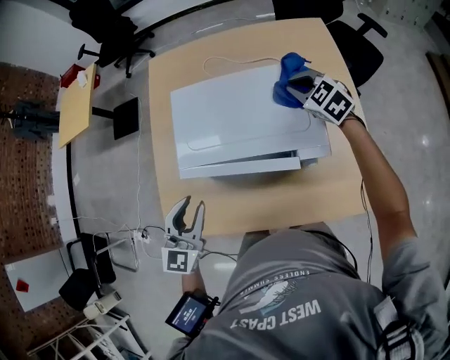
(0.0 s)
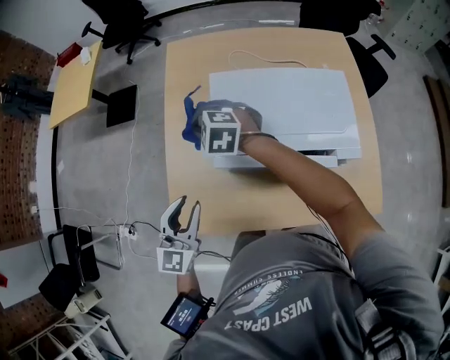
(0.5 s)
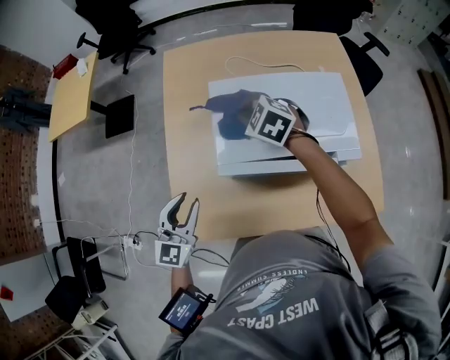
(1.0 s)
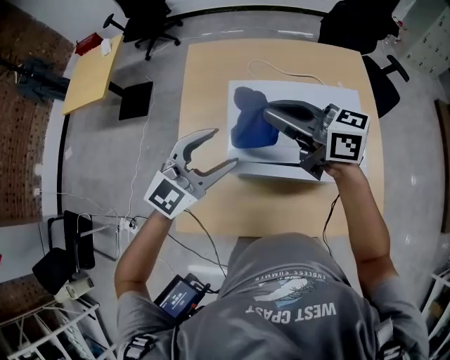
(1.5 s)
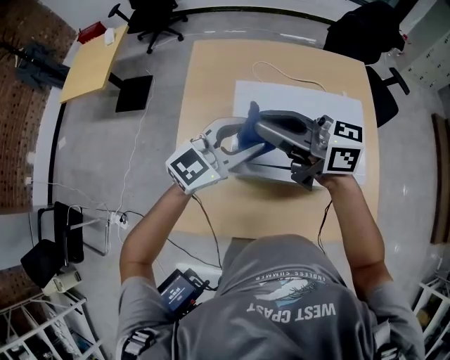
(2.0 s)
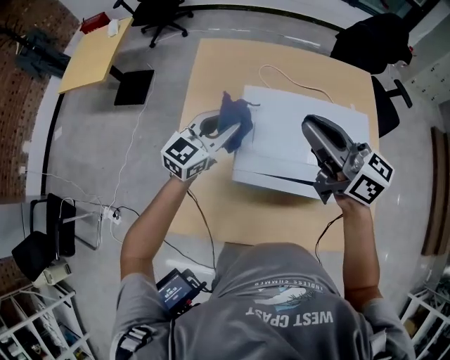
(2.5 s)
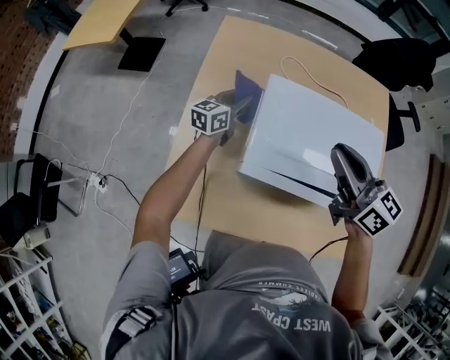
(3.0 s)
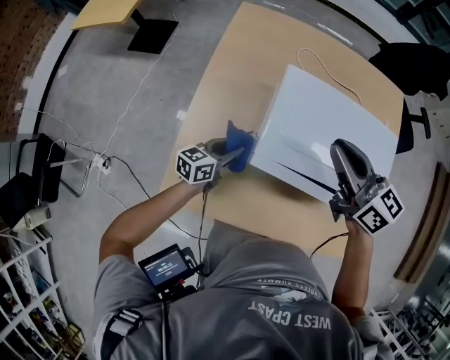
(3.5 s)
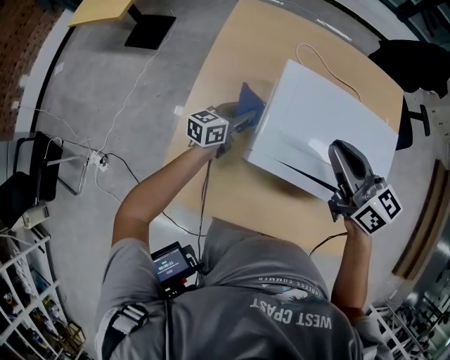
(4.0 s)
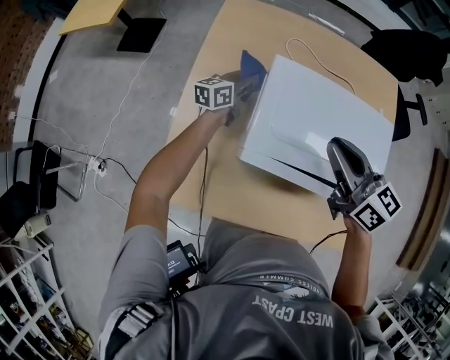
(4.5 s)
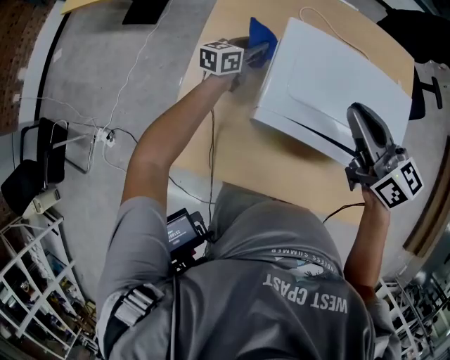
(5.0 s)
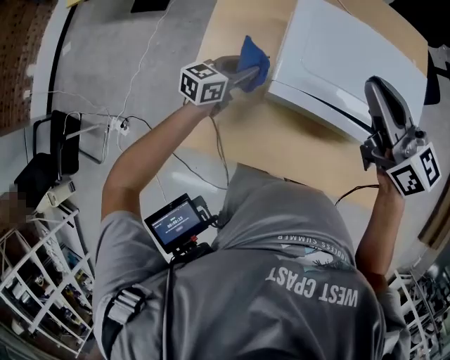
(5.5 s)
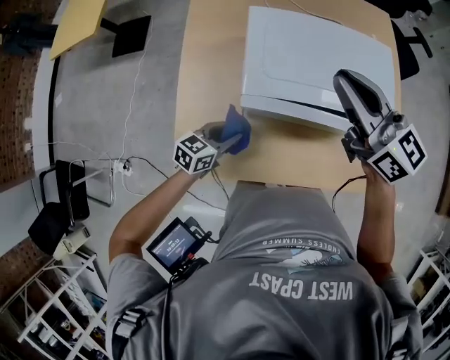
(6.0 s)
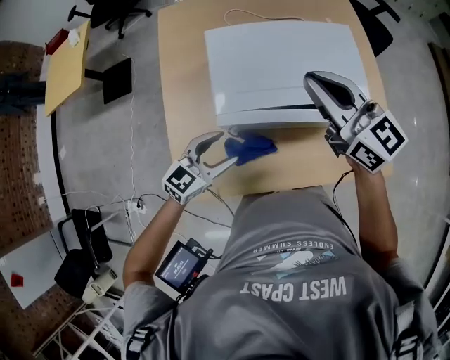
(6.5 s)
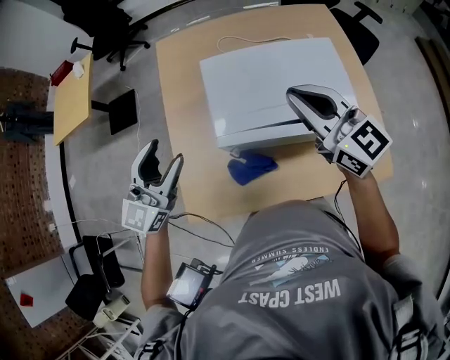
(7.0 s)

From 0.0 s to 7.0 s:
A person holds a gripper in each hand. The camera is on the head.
From 0.0 s to 2.0 s: The right gripper ends up some 40 cm from where it was, and tilts its fingers roughly 50 degrees upward. The left gripper moves about 15 cm, and rotates approximately 40 degrees.
From 2.0 s to 3.5 s: The left gripper goes approximately 25 cm downward, and rotates around the line of its fingers by about 50 degrees, counterclockwise from behind, while the right gripper travels downward by some 10 cm, and rotates roughly 30 degrees.
From 3.5 s to 5.0 s: The left gripper is displaced forward by about 20 cm.
From 5.0 s to 7.0 s: The left gripper travels upward and backward by about 35 cm, swivels some 40 degrees, and opens, while the right gripper heads backward, upward and to the right, covering approximately 10 cm, and swivels approximately 20 degrees.

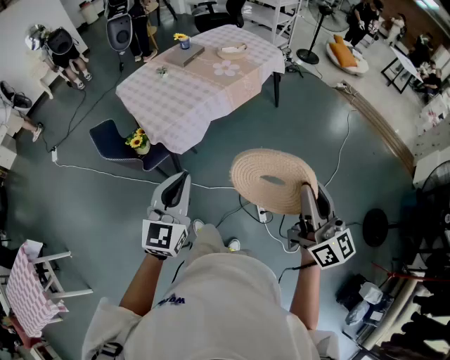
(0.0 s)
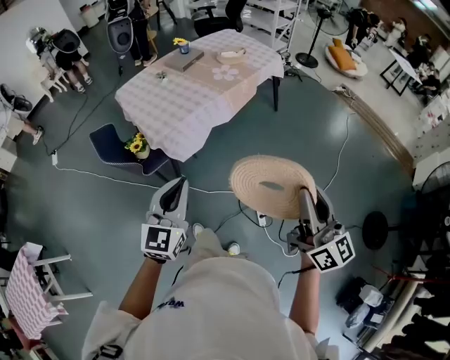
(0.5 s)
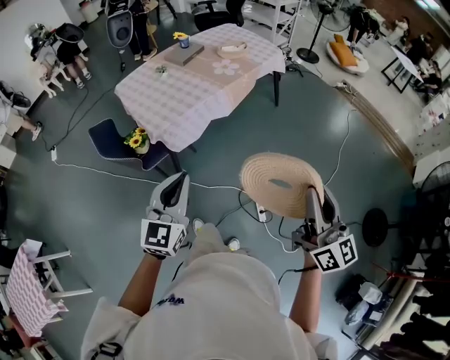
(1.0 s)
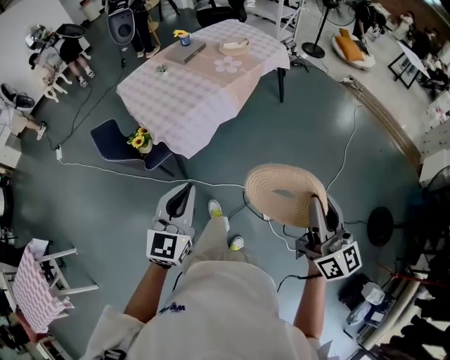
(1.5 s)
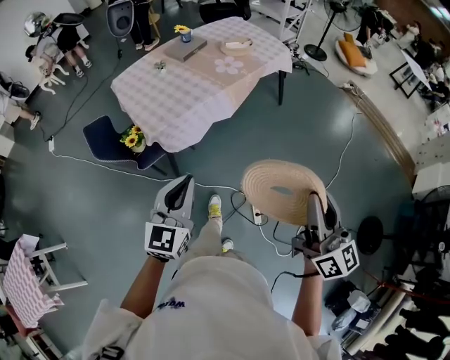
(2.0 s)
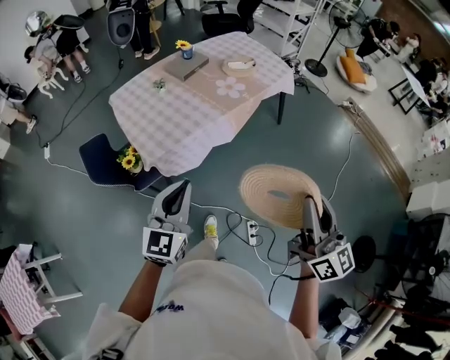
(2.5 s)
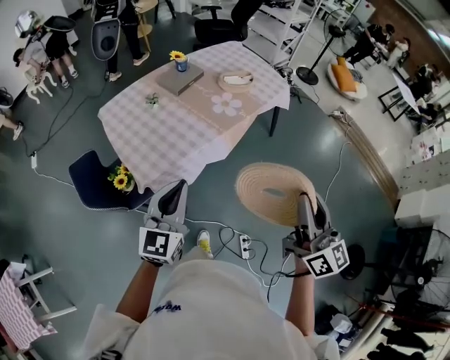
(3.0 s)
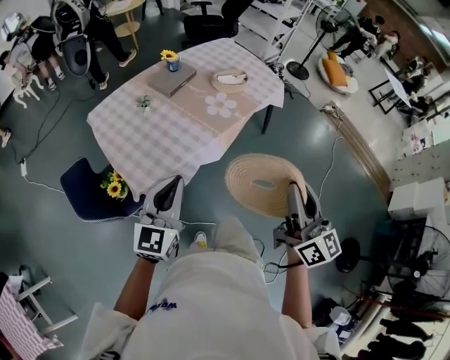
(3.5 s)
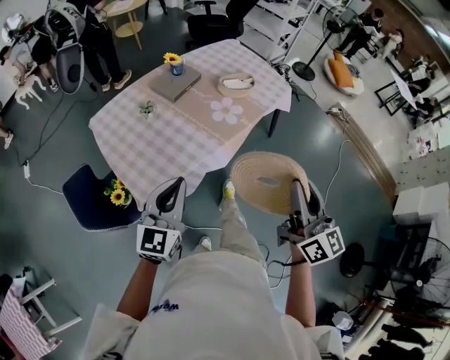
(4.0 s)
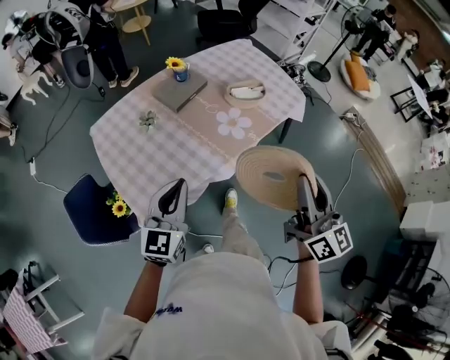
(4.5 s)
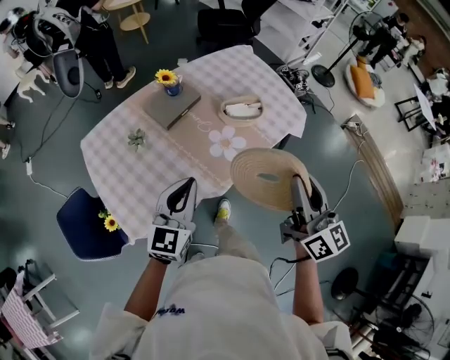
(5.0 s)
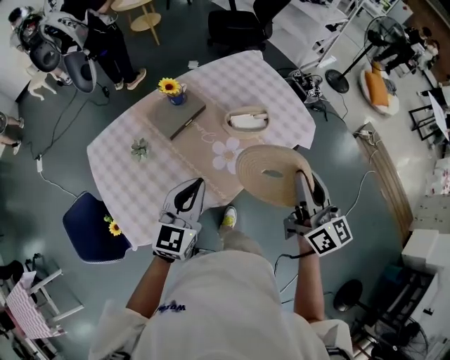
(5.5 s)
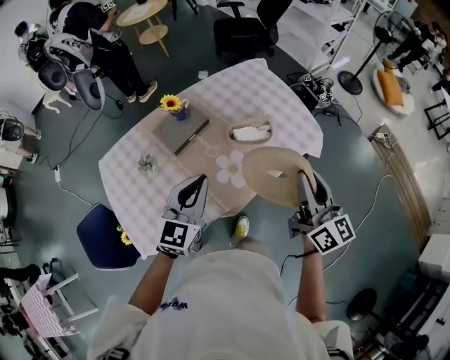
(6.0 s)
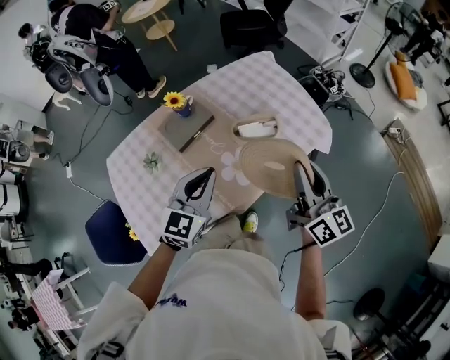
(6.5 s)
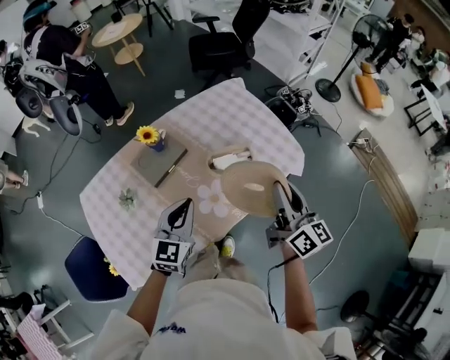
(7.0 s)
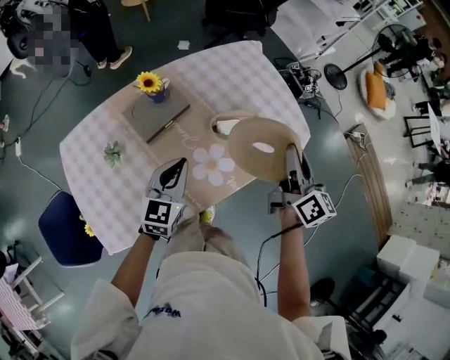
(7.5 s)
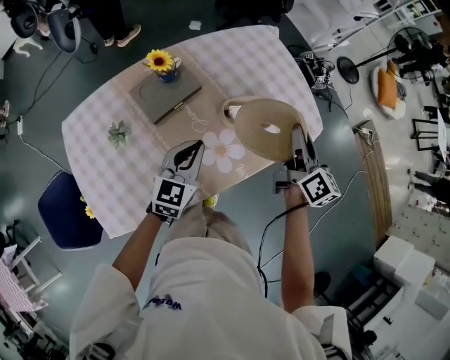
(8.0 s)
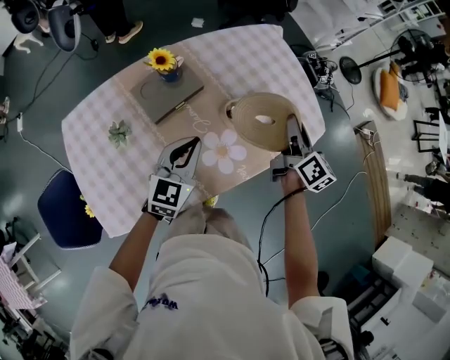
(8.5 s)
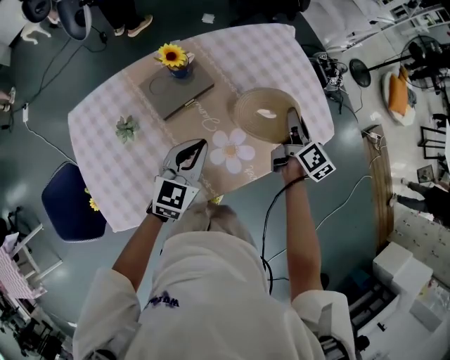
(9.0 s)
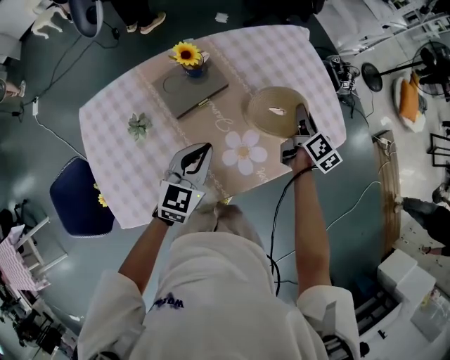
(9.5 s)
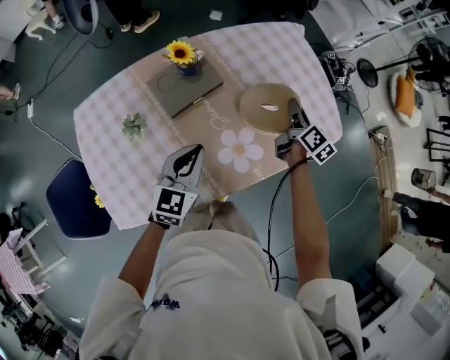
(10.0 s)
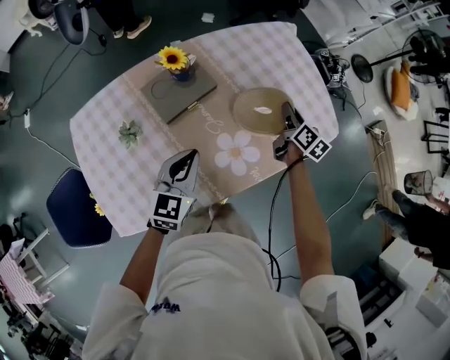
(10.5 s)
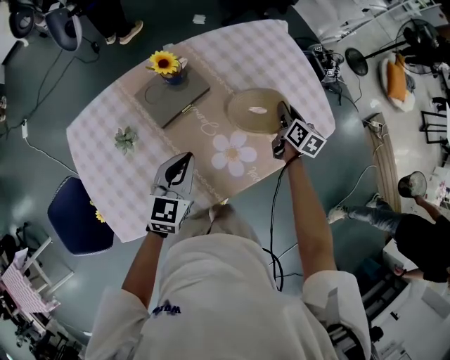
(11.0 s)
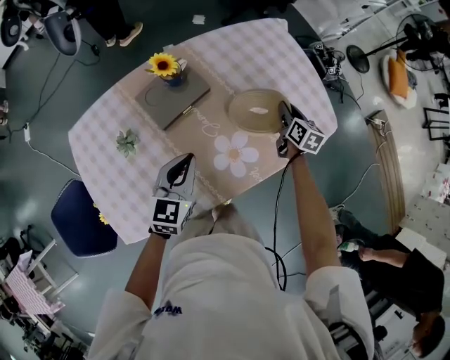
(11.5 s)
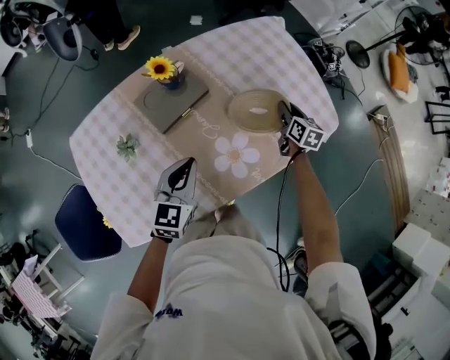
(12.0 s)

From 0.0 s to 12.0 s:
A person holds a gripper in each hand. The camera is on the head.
From 0.0 s to 2.0 s: Both grippers move forward, approximately 5 cm.
From 2.0 s to 4.0 s: The two grippers go approximately 35 cm forward.
From 4.0 s to 6.0 s: The right gripper goes some 40 cm forward. The left gripper moves forward and to the right, roughly 40 cm.
From 6.0 s to 8.0 s: The left gripper shifts approximately 15 cm downward and forward, while the right gripper shifts some 20 cm forward and downward.
From 8.0 s to 10.0 s: The left gripper moves to the left, roughly 5 cm, while the right gripper is displaced downward and forward by some 20 cm.
From 10.0 s to 12.0 s: The right gripper is displaced downward by some 10 cm, and swivels about 30 degrees.

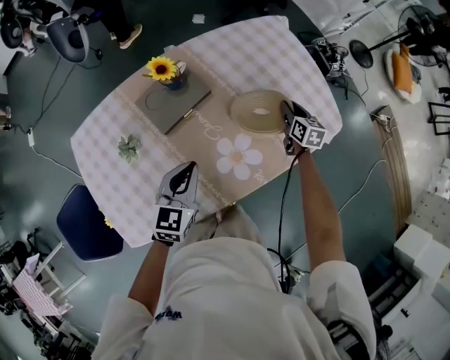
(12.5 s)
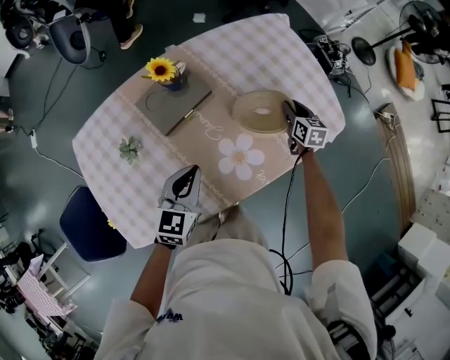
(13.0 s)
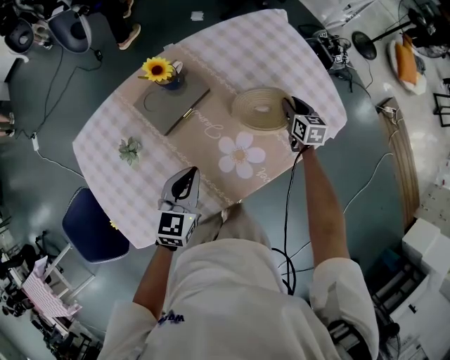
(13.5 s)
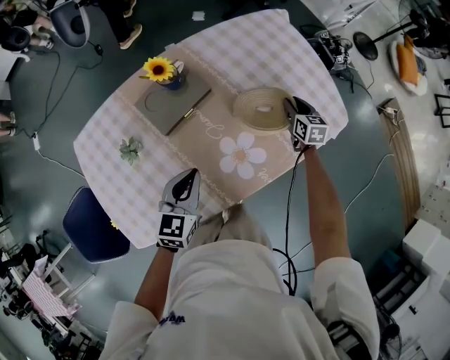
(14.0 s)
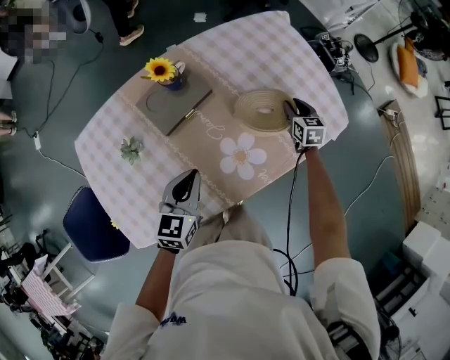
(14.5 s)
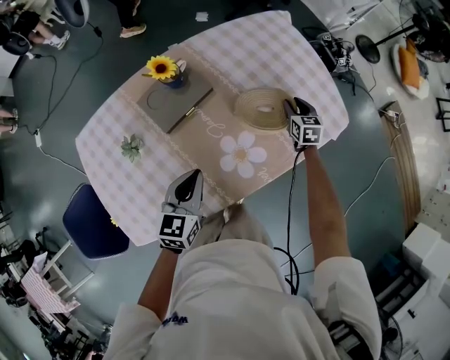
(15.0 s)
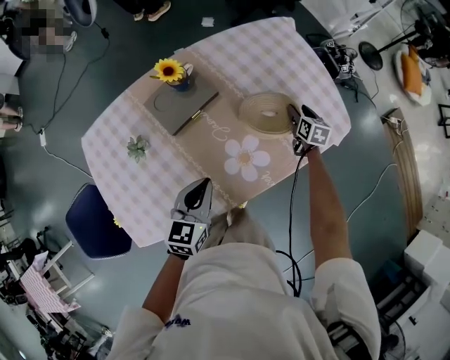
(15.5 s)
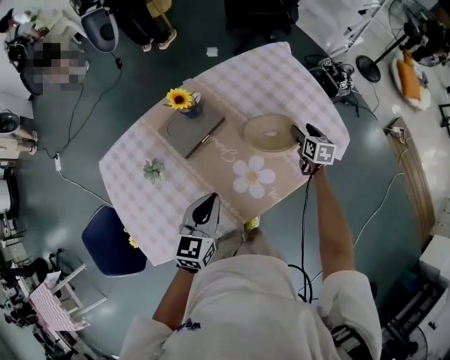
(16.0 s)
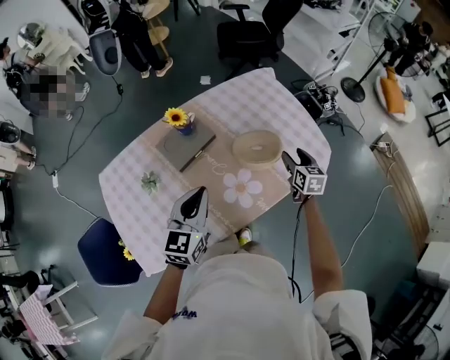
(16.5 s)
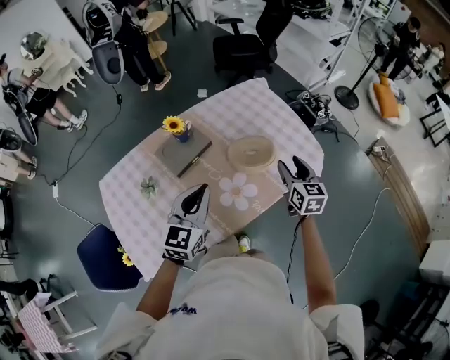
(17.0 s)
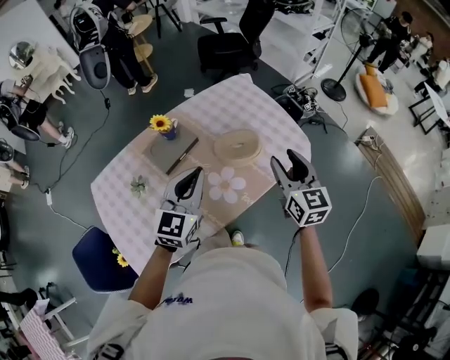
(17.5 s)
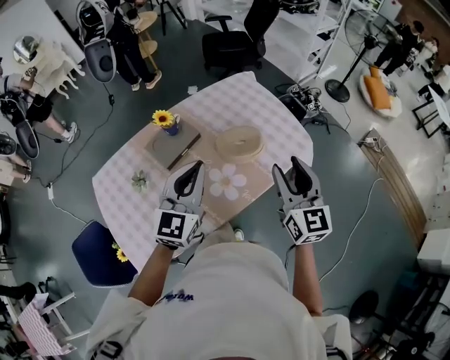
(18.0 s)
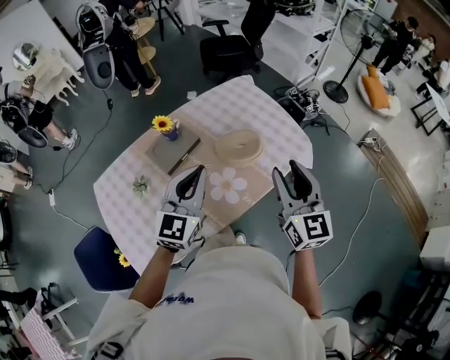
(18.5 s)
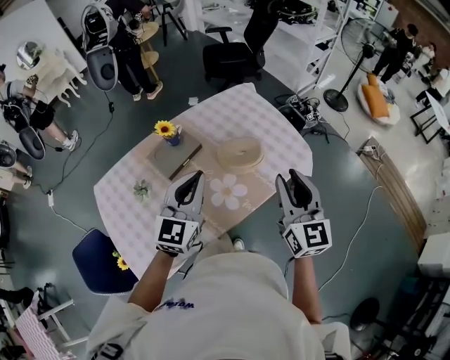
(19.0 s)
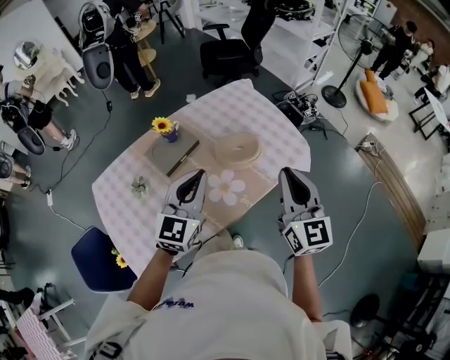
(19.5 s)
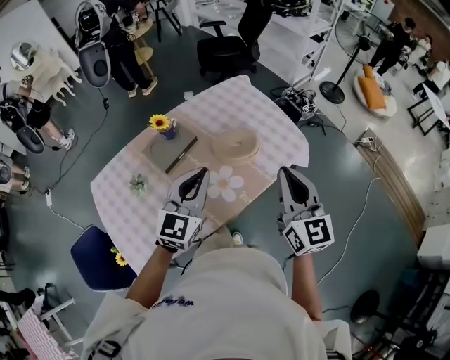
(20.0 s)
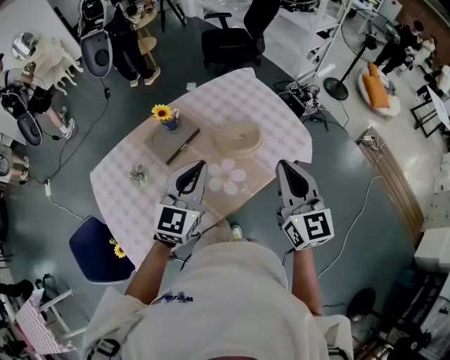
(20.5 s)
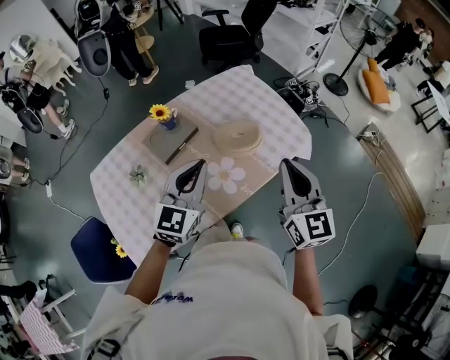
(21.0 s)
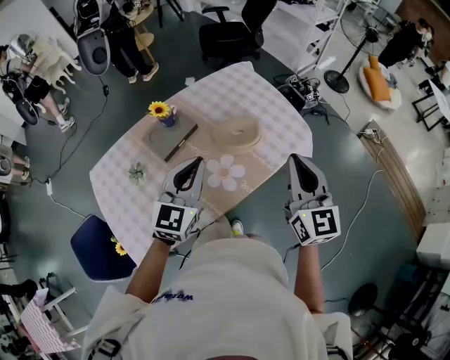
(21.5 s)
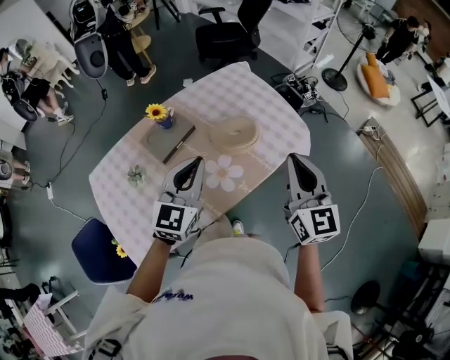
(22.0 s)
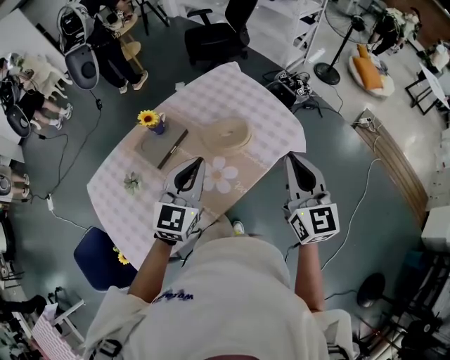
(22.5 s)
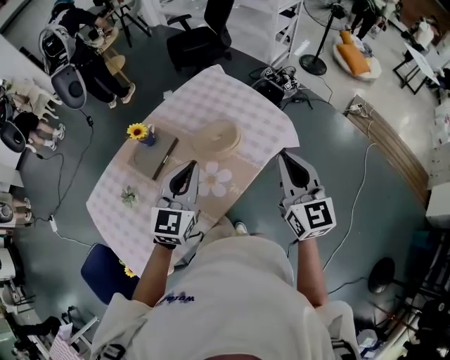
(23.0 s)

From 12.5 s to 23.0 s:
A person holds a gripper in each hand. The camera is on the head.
From 12.5 s to 14.5 s: The grippers make only small movements.
From 14.5 s to 16.5 s: The right gripper heads upward and backward, covering approximately 15 cm, and opens its fingers. Meanwhile the left gripper is displaced upward by roughly 15 cm.
From 16.5 s to 19.0 s: The left gripper heads upward, covering roughly 10 cm. The right gripper is displaced upward and backward by about 30 cm, angles its fingers upward, by about 30 degrees, and closes.
From 19.0 s to 21.0 s: The right gripper closes its fingers.
From 21.0 s to 23.0 s: The right gripper shifts about 5 cm to the right.
